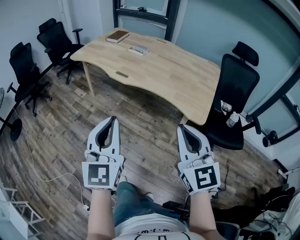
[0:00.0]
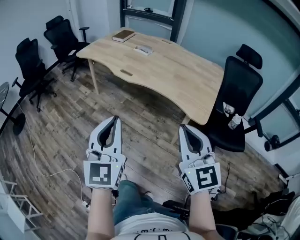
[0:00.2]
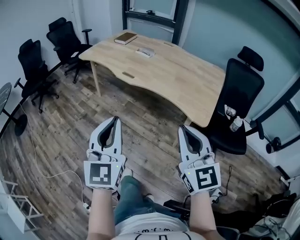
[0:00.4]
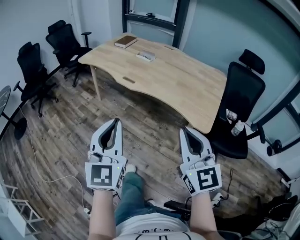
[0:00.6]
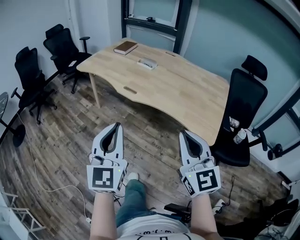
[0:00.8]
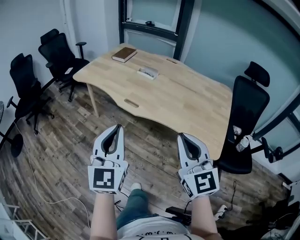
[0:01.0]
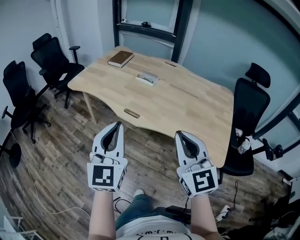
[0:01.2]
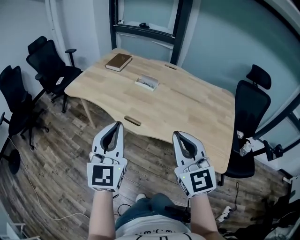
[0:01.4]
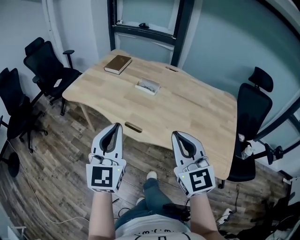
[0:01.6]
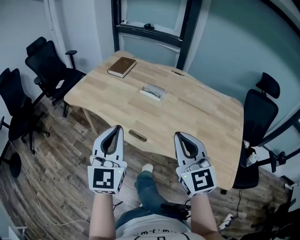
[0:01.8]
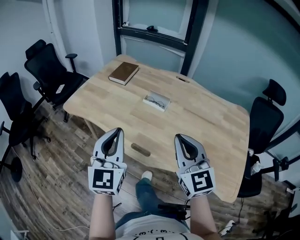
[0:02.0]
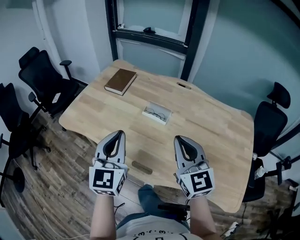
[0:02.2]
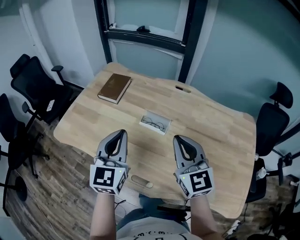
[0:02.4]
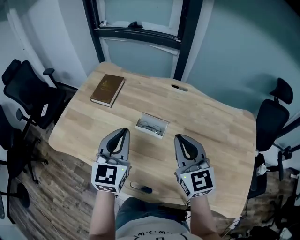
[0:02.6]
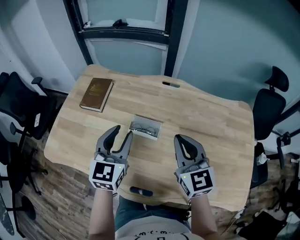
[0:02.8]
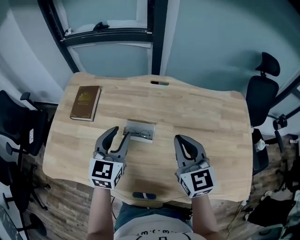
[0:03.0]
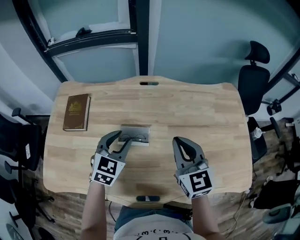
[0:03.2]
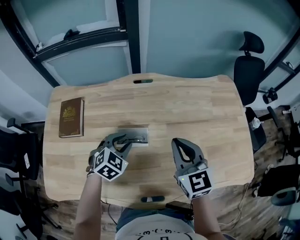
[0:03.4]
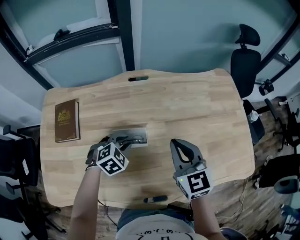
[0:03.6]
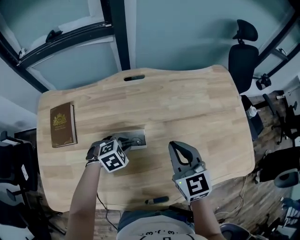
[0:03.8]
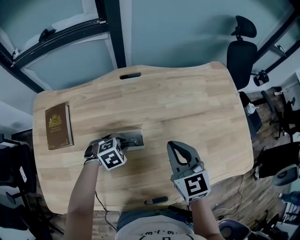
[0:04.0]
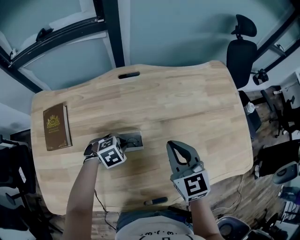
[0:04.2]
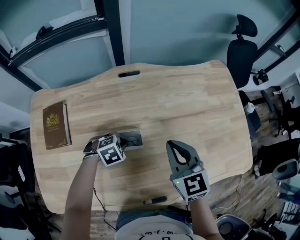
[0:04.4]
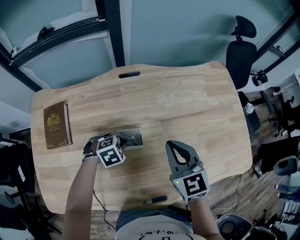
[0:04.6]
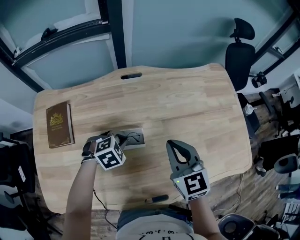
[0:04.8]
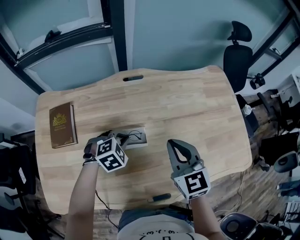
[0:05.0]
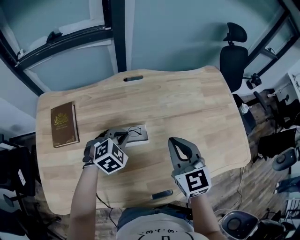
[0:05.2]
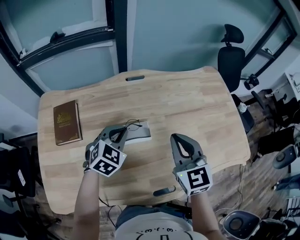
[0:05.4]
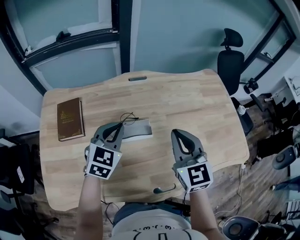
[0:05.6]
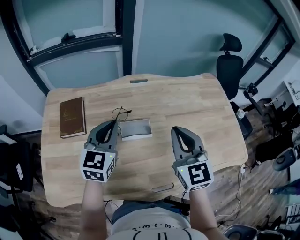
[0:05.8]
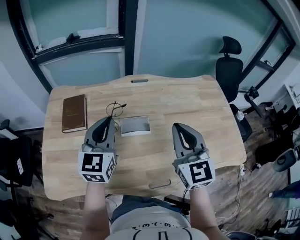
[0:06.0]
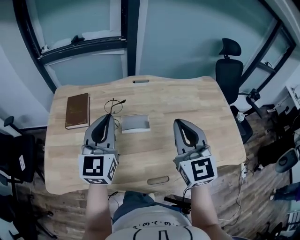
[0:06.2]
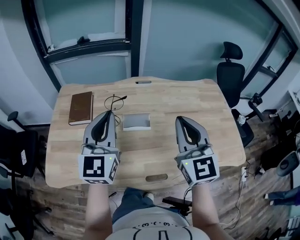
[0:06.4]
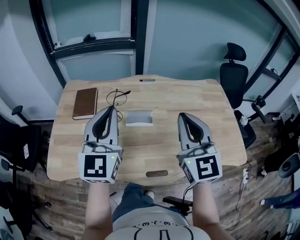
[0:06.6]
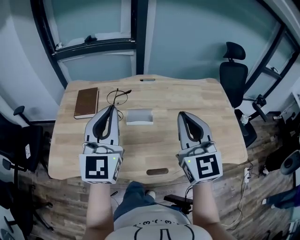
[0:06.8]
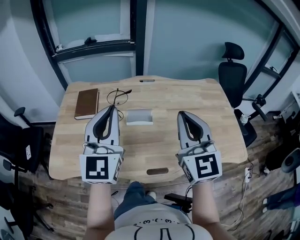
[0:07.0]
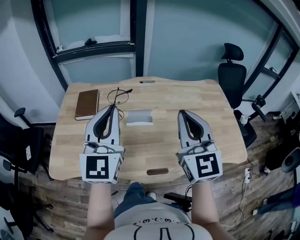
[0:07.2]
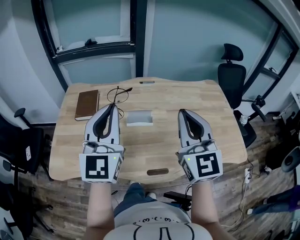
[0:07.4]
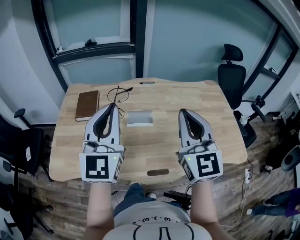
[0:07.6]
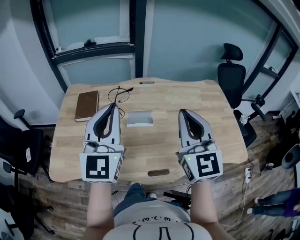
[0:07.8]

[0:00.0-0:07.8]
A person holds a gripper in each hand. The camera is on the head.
0:00.0 to 0:01.6: Both grippers travel together forward, some 40 cm.
0:01.6 to 0:03.2: The two grippers travel together, about 50 cm. The right gripper swivels approximately 30 degrees. Meanwhile the left gripper tilts its fingers approximately 30 degrees downward, and opens up.
0:03.2 to 0:04.6: The left gripper heads downward, covering some 15 cm, points its fingers roughly 40 degrees further downward, and closes. The right gripper heads downward, covering about 5 cm.
0:04.6 to 0:06.2: The right gripper heads upward, covering approximately 15 cm, and changes its angle by some 20 degrees; the left gripper goes some 35 cm upward, and points its fingers approximately 70 degrees further upward.
0:06.2 to 0:07.8: Both grippers move backward and upward, about 10 cm.

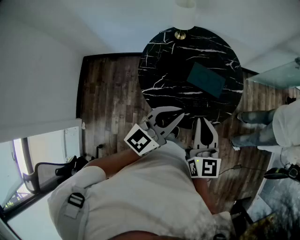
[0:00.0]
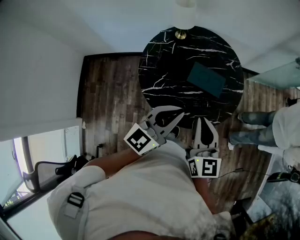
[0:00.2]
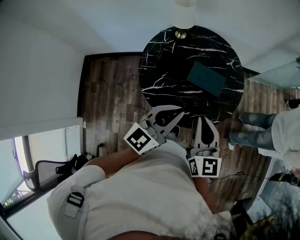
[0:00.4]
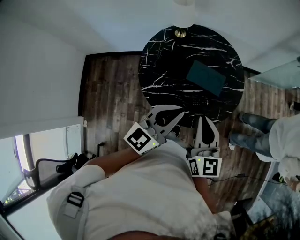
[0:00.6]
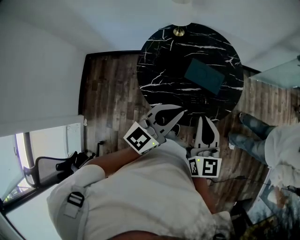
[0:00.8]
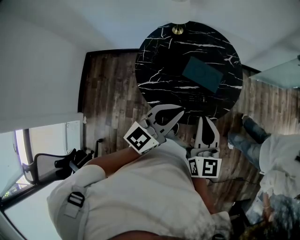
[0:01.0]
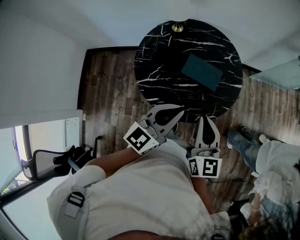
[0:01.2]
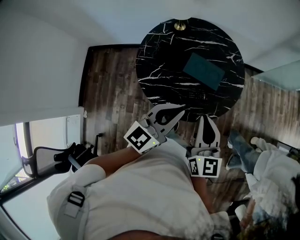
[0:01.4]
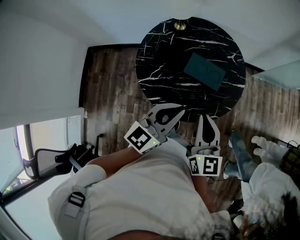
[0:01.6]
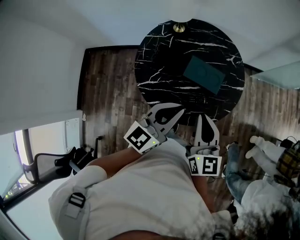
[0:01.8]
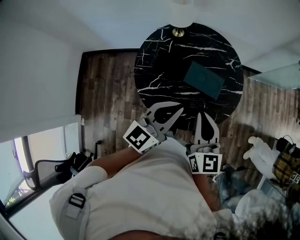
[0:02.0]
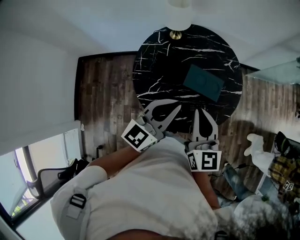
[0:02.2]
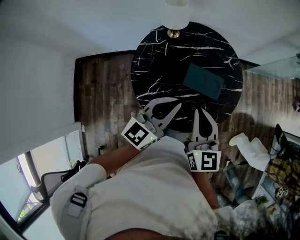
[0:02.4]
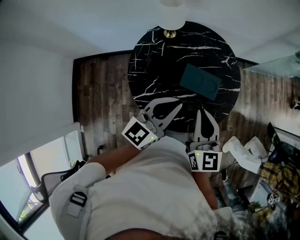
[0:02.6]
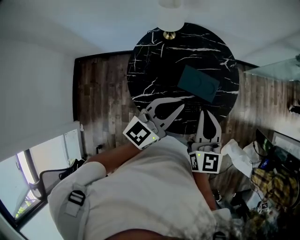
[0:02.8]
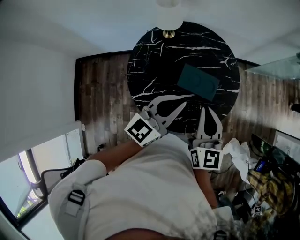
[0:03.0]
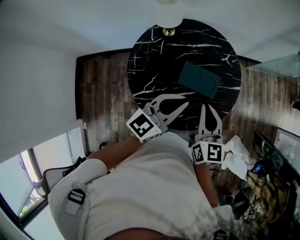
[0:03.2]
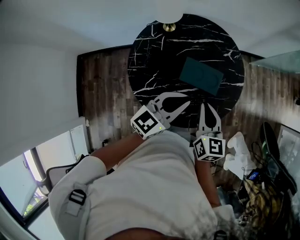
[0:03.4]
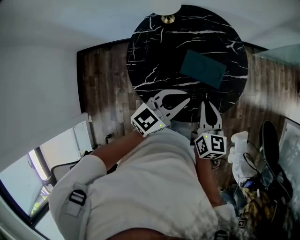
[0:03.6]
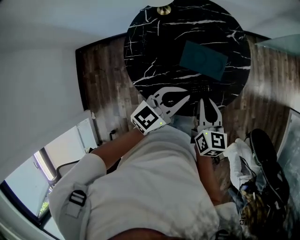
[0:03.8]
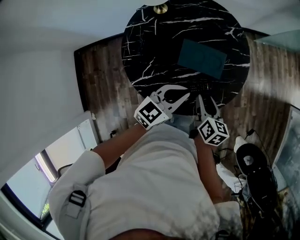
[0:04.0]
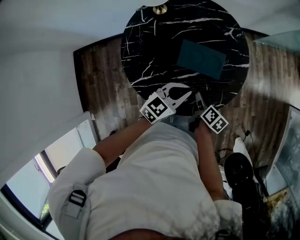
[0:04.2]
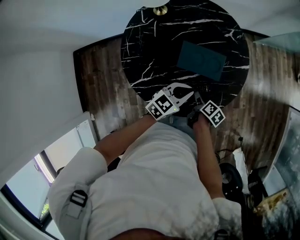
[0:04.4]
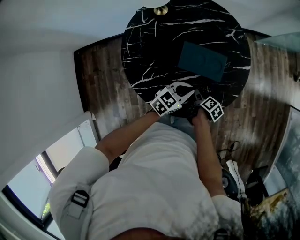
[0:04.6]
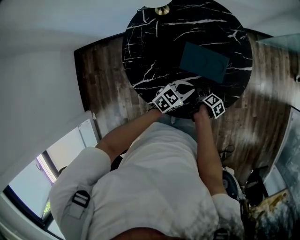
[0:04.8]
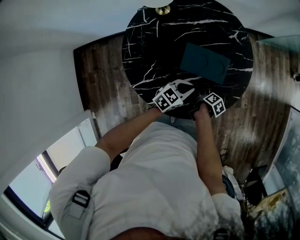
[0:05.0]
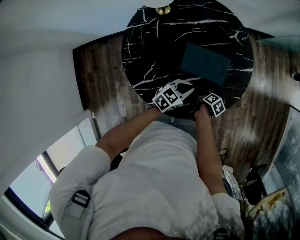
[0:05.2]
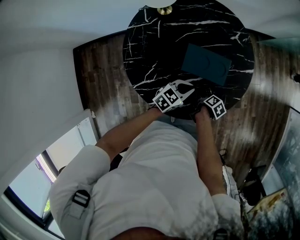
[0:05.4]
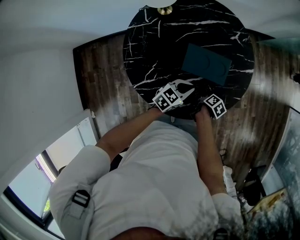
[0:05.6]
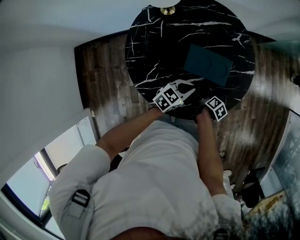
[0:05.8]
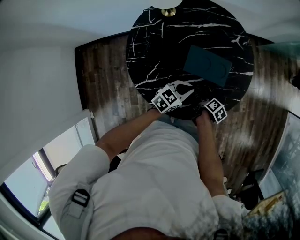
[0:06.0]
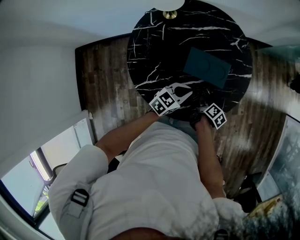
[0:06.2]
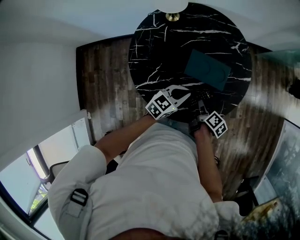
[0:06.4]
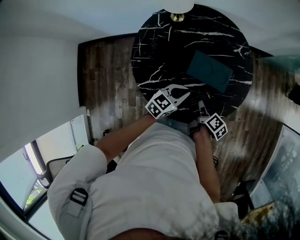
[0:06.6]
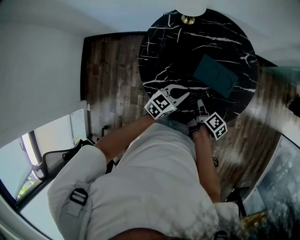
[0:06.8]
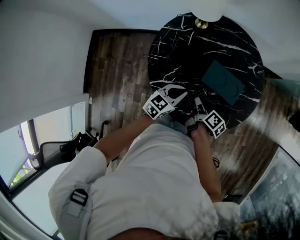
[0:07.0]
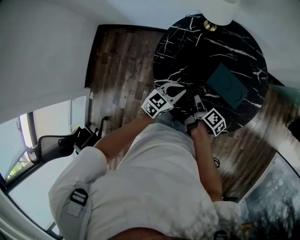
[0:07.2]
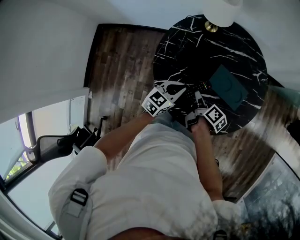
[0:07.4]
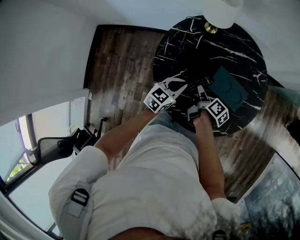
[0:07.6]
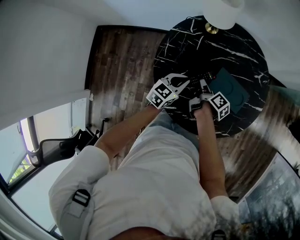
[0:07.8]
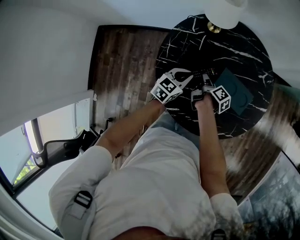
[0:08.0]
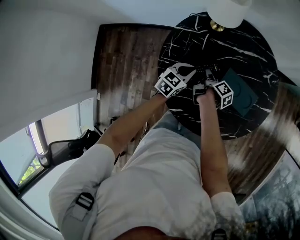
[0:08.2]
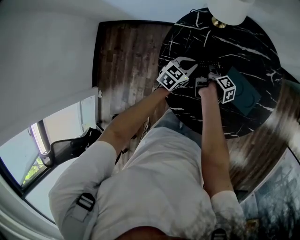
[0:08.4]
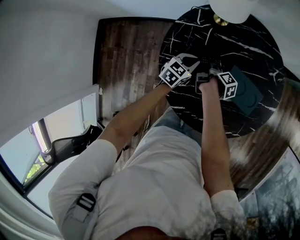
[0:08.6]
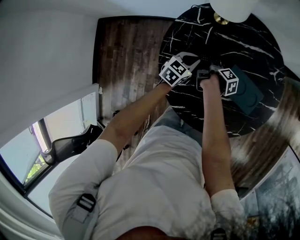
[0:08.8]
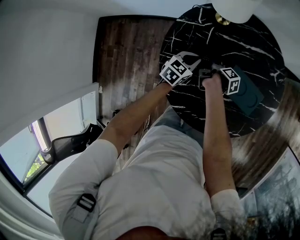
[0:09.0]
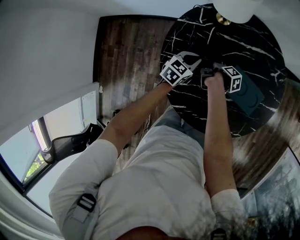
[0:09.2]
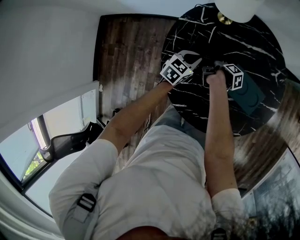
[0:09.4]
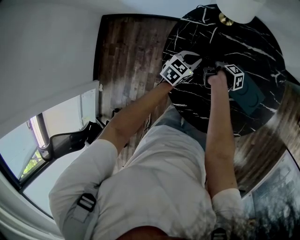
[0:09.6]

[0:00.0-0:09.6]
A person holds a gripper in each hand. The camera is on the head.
0:00.0 to 0:01.6: Both grippers move to the right, roughly 5 cm.
0:01.6 to 0:03.2: Both grippers travel together forward, some 10 cm.
0:03.2 to 0:04.8: Both grippers move downward, approximately 35 cm. The left gripper swivels some 40 degrees; the right gripper rolls clockwise, seen from behind, by some 70 degrees, and opens up.
0:04.8 to 0:06.4: The right gripper is displaced upward by about 10 cm, and closes up, while the left gripper shifts approximately 5 cm upward.
0:06.4 to 0:08.0: Both grippers travel together to the left and forward, approximately 20 cm. The left gripper changes its angle by approximately 20 degrees.
0:08.0 to 0:09.6: The left gripper changes place by about 10 cm. Meanwhile the right gripper moves downward, roughly 5 cm, and rotates some 20 degrees.

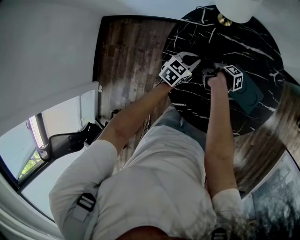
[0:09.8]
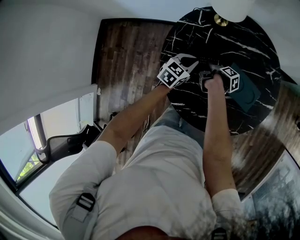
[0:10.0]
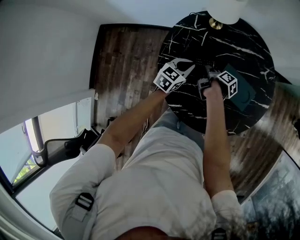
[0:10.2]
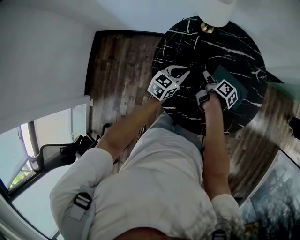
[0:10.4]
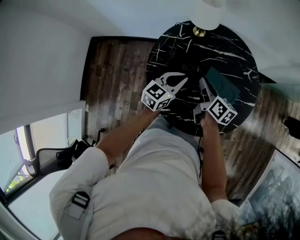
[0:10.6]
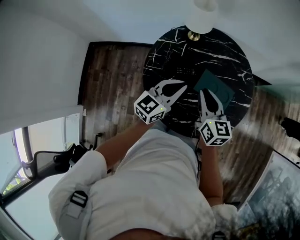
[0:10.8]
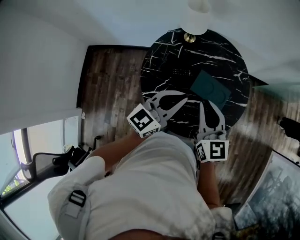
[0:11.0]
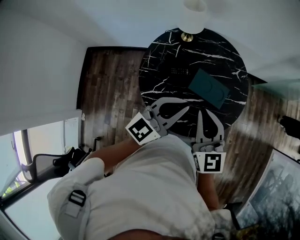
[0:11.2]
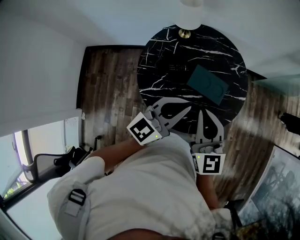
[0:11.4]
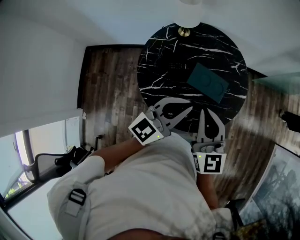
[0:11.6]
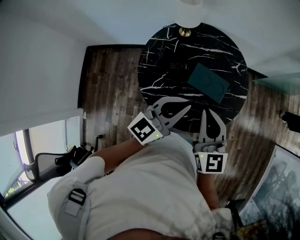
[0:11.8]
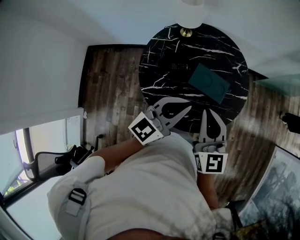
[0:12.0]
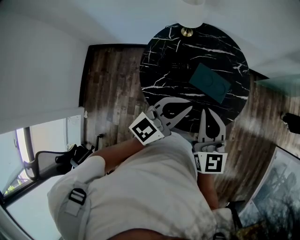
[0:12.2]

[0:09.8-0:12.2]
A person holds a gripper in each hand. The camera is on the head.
0:09.8 to 0:11.0: The grippers both shift upward and backward by approximately 35 cm. The right gripper rotates around the line of its fingers by about 90 degrees, counterclockwise from behind. Meanwhile the left gripper angles its fingers upward, by about 40 degrees.
0:11.0 to 0:12.2: The right gripper heads backward, covering roughly 5 cm; the left gripper heads to the right, covering some 5 cm.

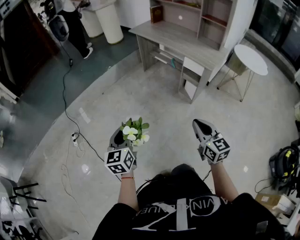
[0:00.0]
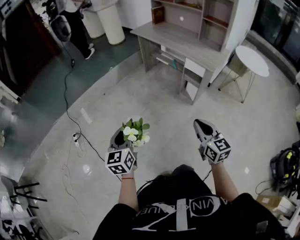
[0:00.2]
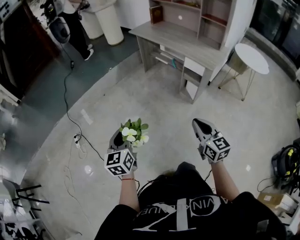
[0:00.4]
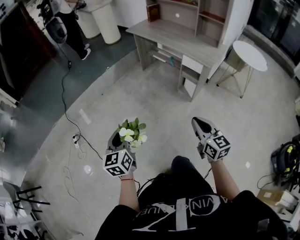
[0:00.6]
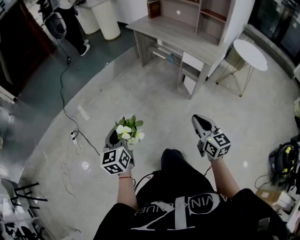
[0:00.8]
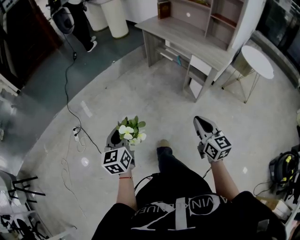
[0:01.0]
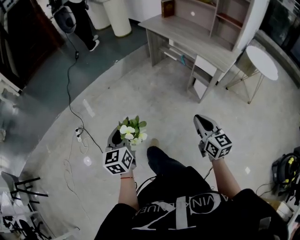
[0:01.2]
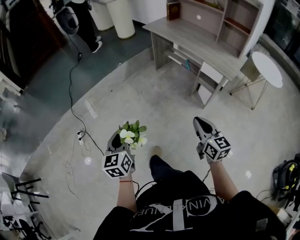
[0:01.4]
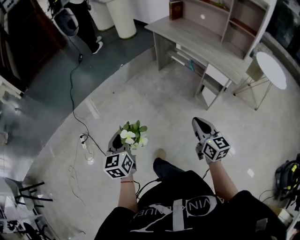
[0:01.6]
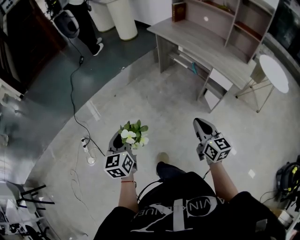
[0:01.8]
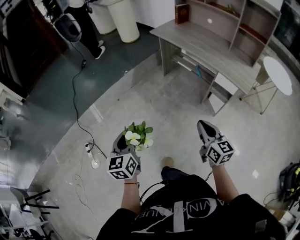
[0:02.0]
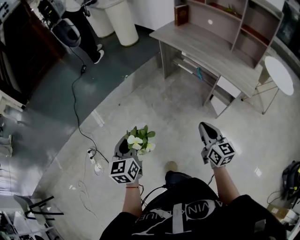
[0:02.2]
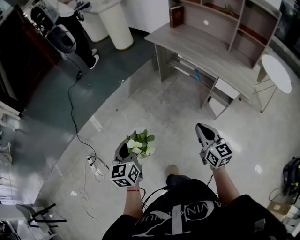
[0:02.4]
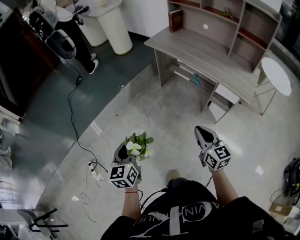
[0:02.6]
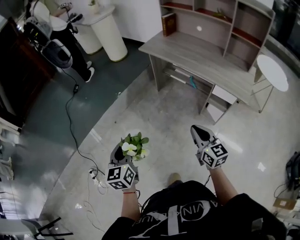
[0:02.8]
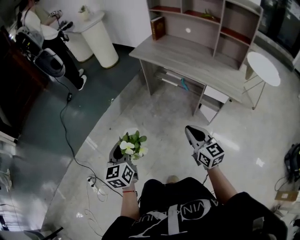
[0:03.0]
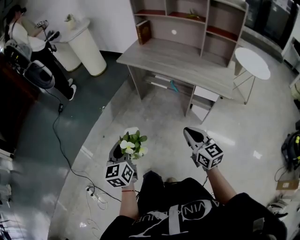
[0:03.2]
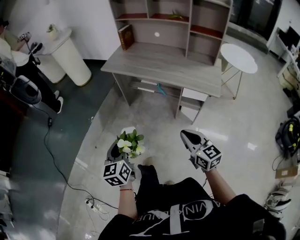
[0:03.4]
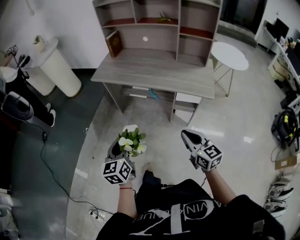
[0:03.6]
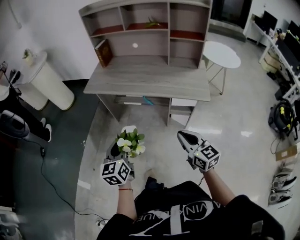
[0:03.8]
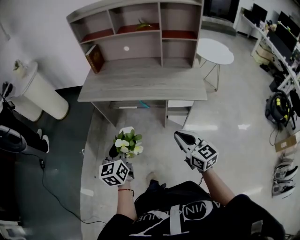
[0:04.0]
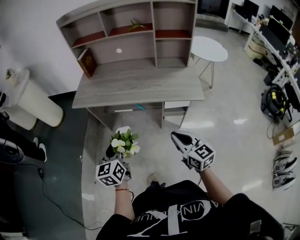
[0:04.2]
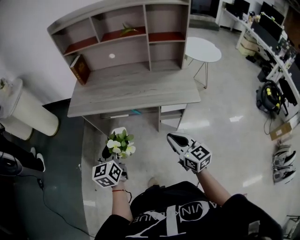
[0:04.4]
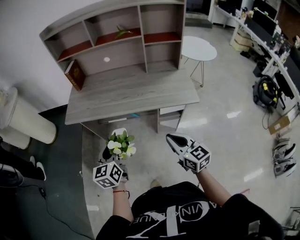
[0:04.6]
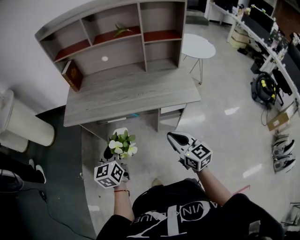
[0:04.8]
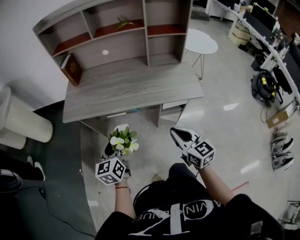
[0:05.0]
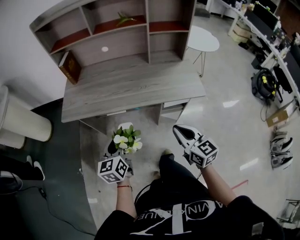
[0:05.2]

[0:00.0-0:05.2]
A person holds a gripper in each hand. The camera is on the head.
0:00.0 to 0:01.8: The left gripper is displaced forward and to the left by roughly 20 cm. Meanwhile the right gripper moves forward, roughly 25 cm.
0:01.8 to 0:03.4: The left gripper goes roughly 25 cm forward, and changes its angle by roughly 20 degrees; the right gripper heads forward, covering roughly 15 cm.
0:03.4 to 0:05.2: The left gripper shifts by roughly 35 cm, and turns by about 30 degrees. Meanwhile the right gripper moves roughly 20 cm, and turns by about 30 degrees.
